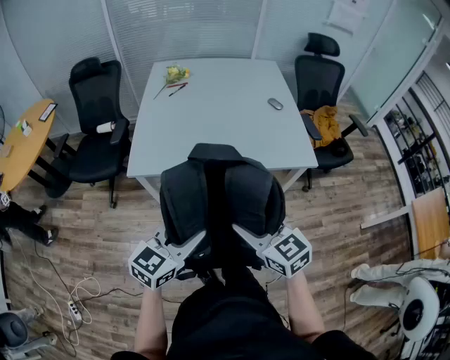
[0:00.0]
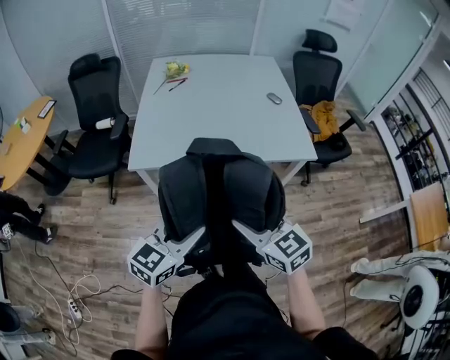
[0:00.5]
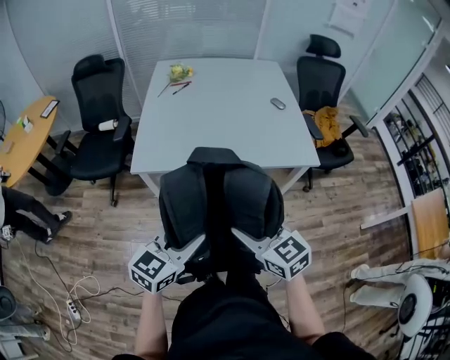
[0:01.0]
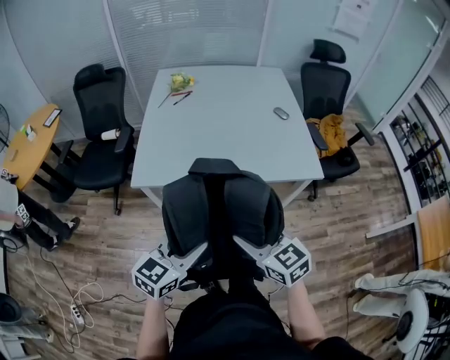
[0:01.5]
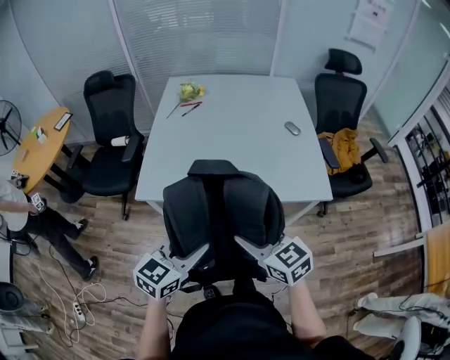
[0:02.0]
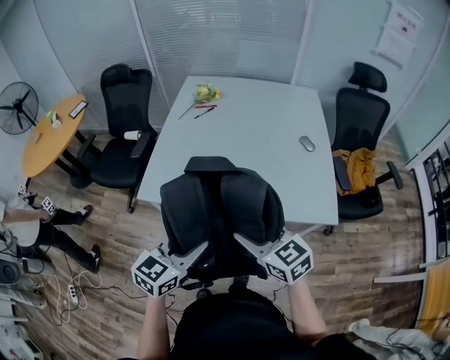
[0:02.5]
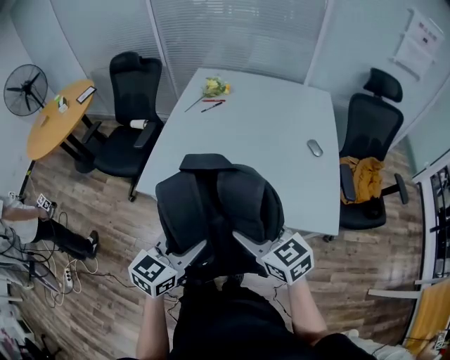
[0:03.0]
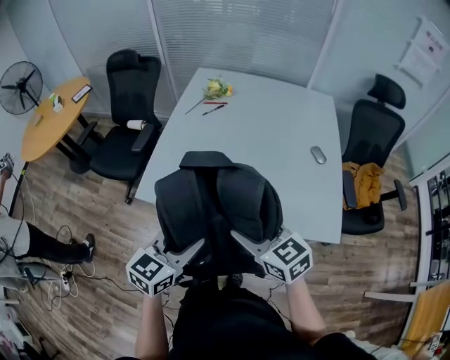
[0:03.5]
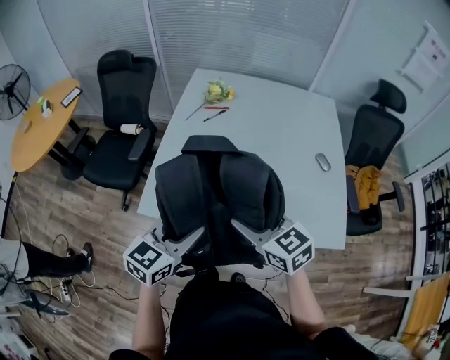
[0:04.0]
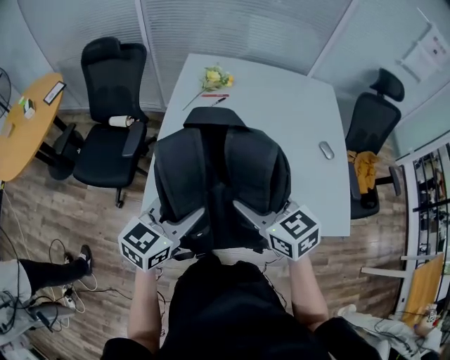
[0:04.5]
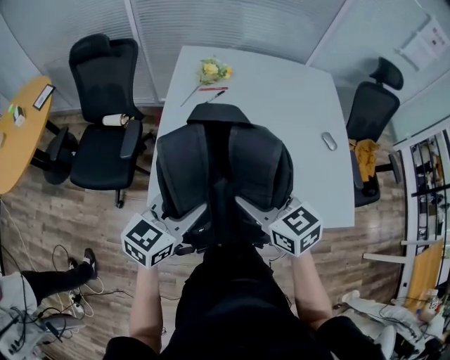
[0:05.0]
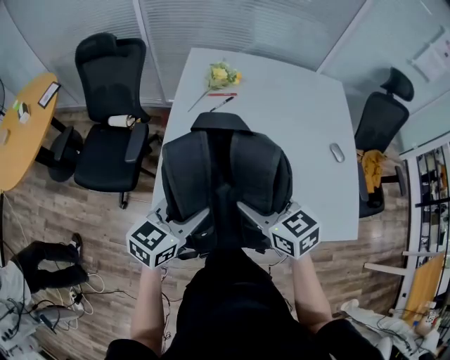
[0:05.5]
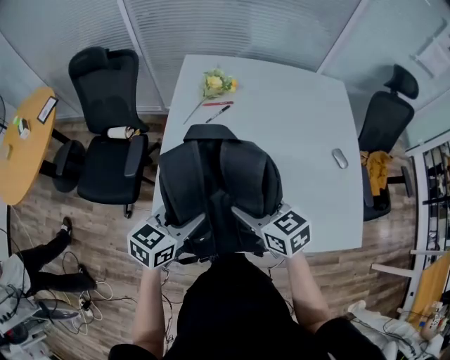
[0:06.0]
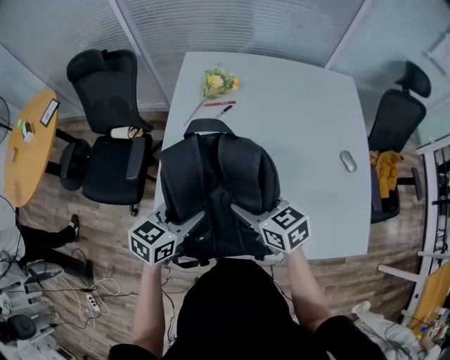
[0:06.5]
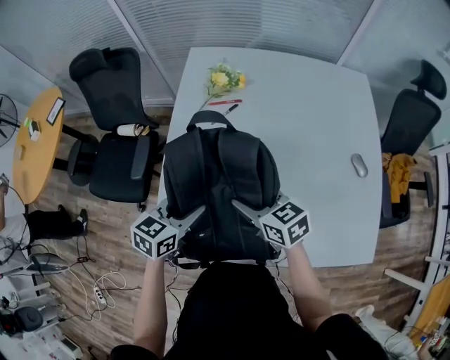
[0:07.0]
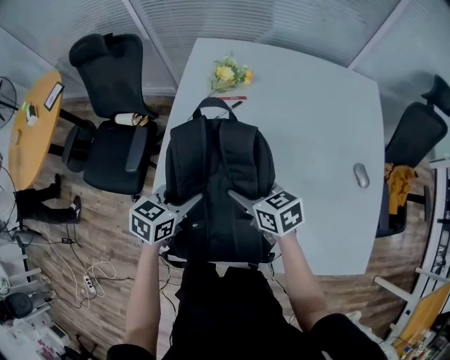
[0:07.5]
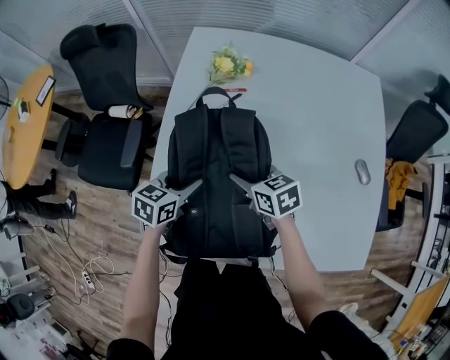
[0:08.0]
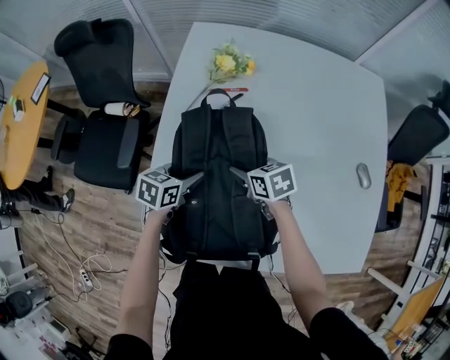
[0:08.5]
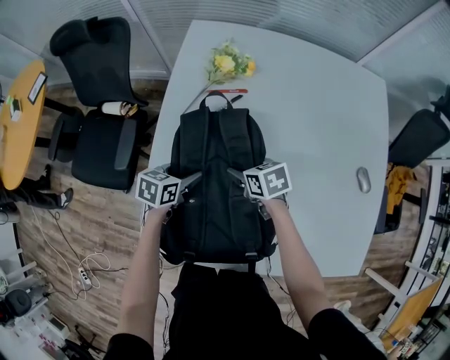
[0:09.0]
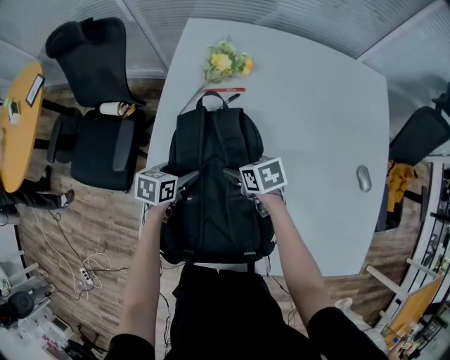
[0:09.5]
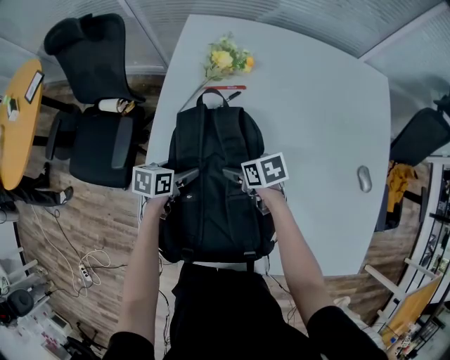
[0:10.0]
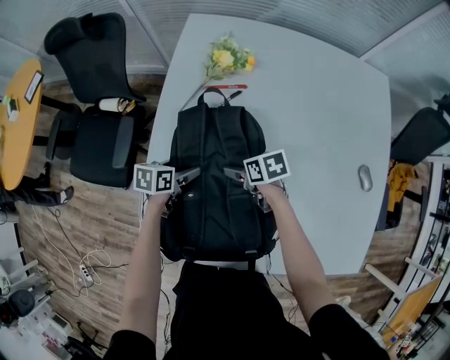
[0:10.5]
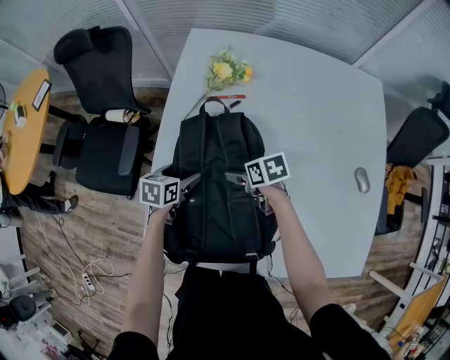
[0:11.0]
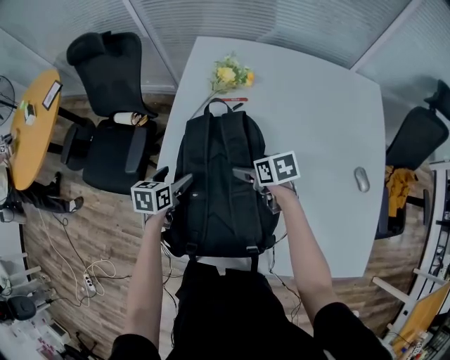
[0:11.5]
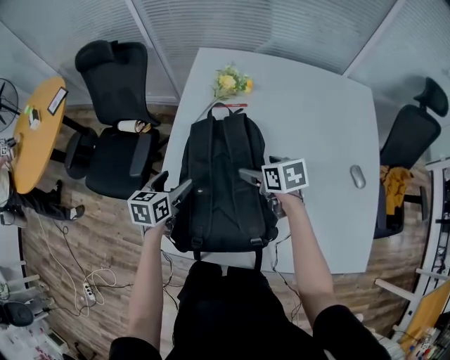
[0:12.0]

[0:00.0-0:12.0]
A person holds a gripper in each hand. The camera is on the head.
0:00.0 to 0:02.0: The two grippers go some 10 cm forward.
0:02.0 to 0:04.0: The grippers both shift forward by roughly 25 cm.
0:04.0 to 0:06.0: The left gripper heads forward and to the left, covering about 20 cm; the right gripper heads forward, to the left and downward, covering about 20 cm.
0:06.0 to 0:08.0: Both grippers travel together forward and downward, some 20 cm.
0:08.0 to 0:10.0: The grippers both shift downward and forward by some 10 cm. The right gripper changes its angle by roughly 20 degrees, and opens. The left gripper turns by some 20 degrees, and opens up.
0:10.0 to 0:12.0: Both grippers move upward, some 15 cm. The left gripper changes its angle by roughly 20 degrees.

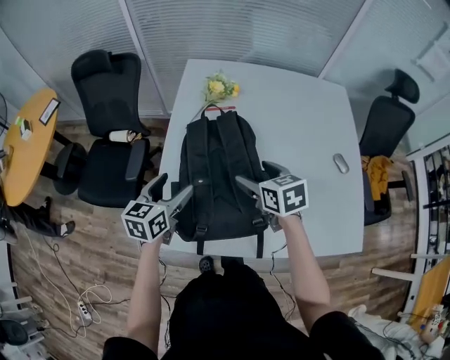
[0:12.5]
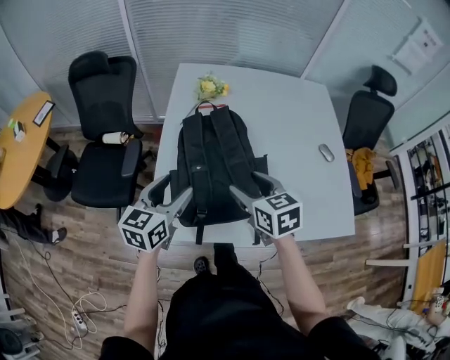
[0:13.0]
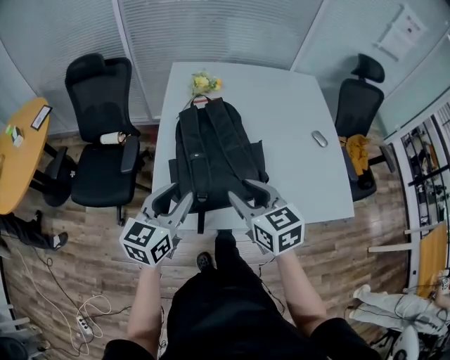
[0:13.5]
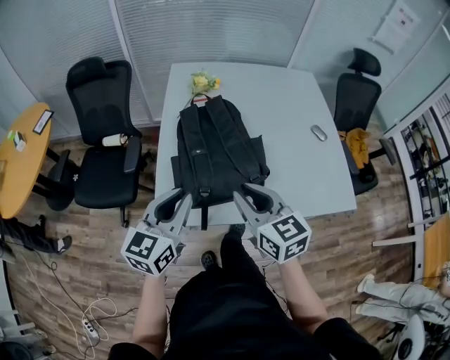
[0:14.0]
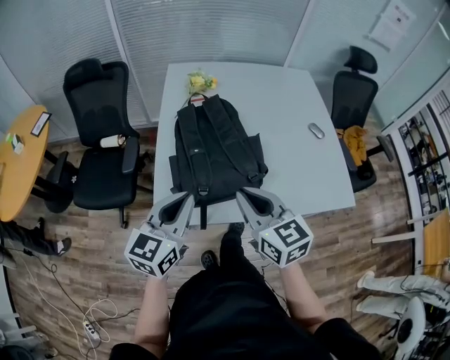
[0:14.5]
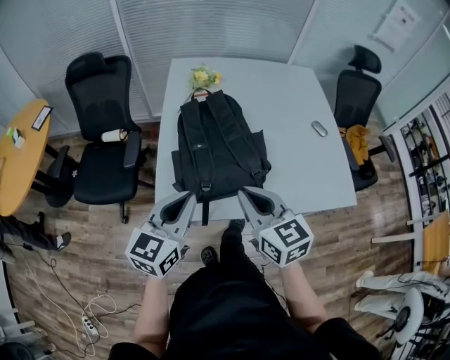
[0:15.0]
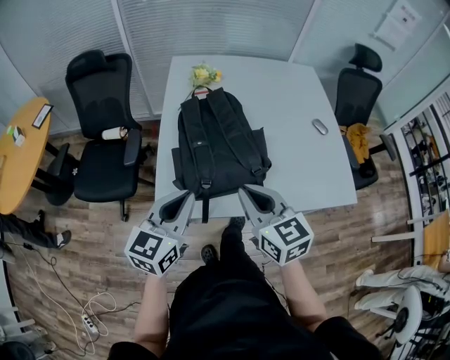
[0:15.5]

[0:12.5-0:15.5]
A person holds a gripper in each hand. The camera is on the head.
0:12.5 to 0:14.0: Both grippers move backward and upward, about 25 cm. The left gripper closes its fingers, while the right gripper rotates some 20 degrees, and closes its fingers.
0:14.0 to 0:15.5: There are only small adjustments of the grippers.

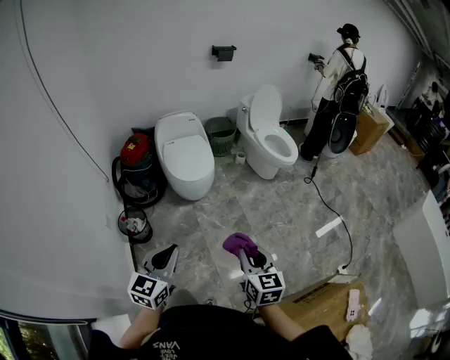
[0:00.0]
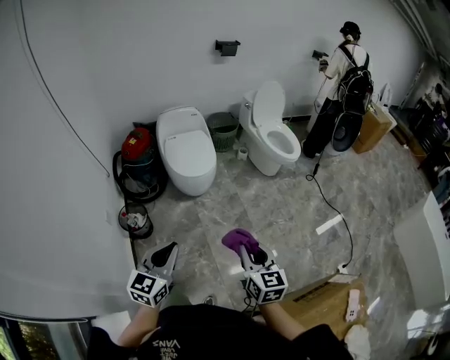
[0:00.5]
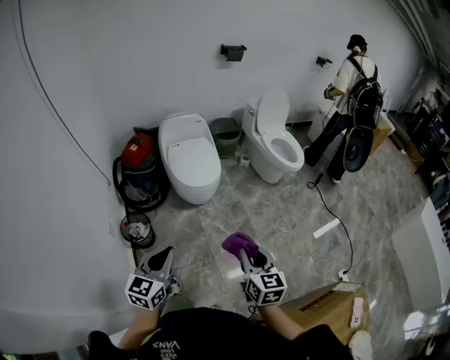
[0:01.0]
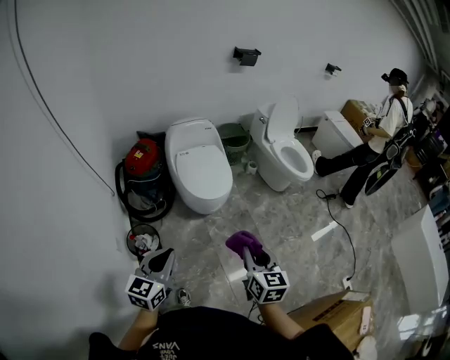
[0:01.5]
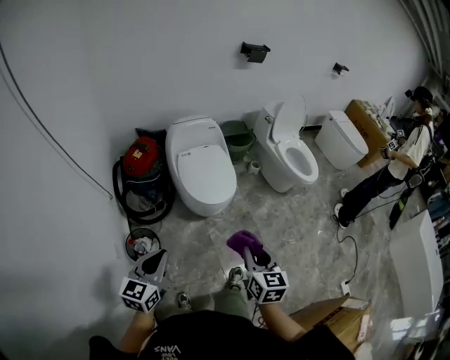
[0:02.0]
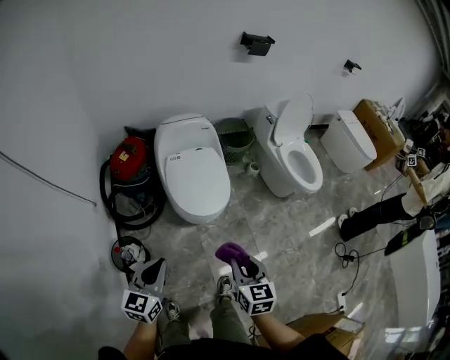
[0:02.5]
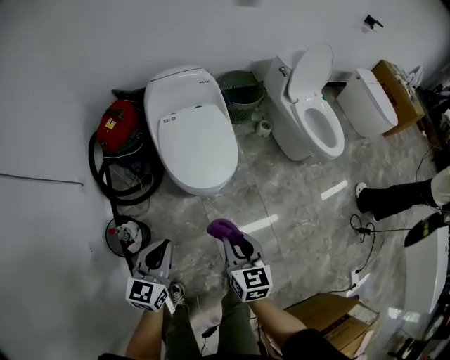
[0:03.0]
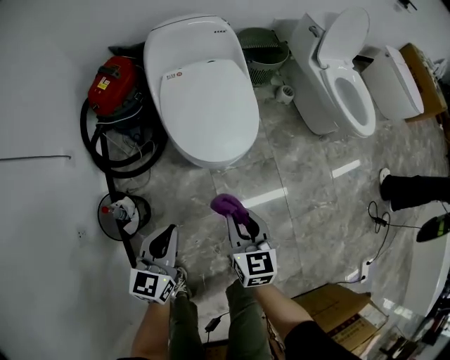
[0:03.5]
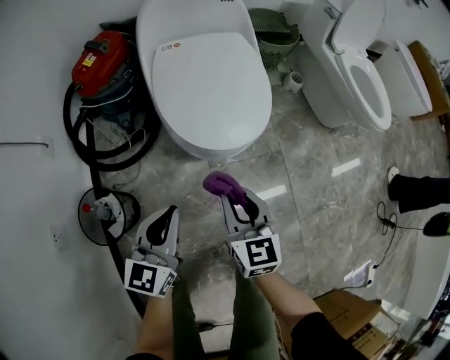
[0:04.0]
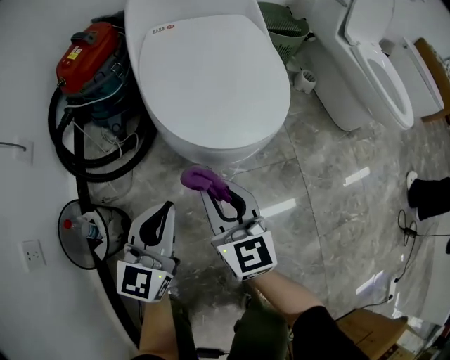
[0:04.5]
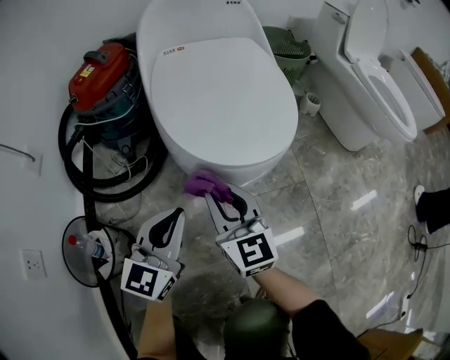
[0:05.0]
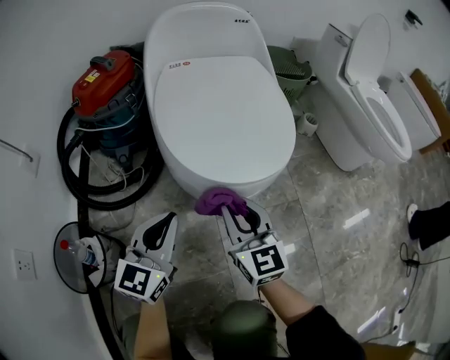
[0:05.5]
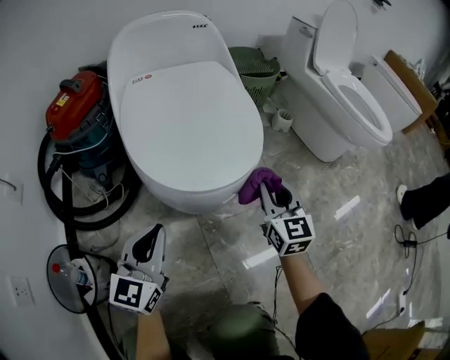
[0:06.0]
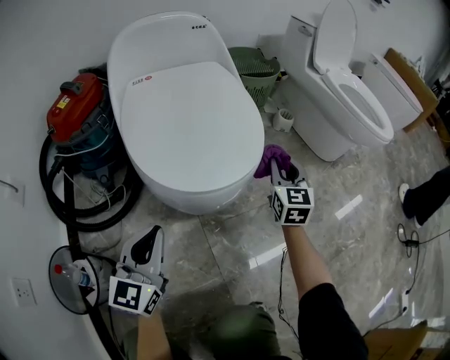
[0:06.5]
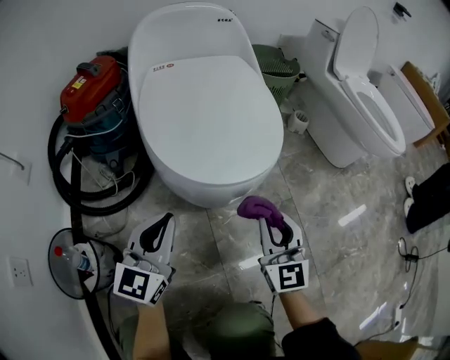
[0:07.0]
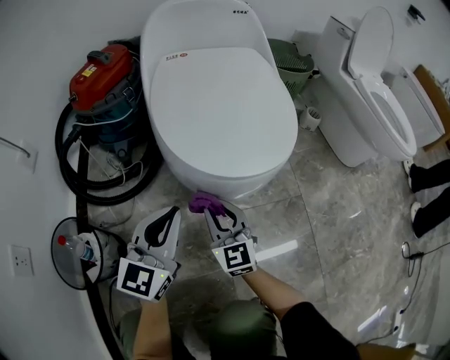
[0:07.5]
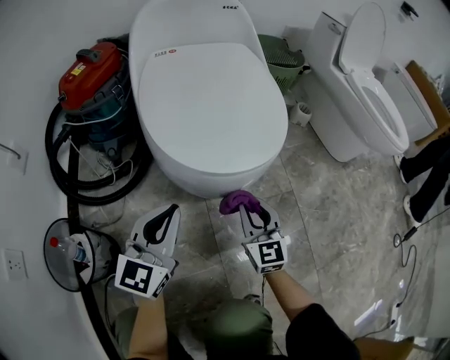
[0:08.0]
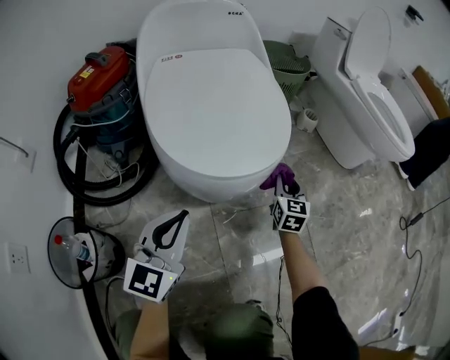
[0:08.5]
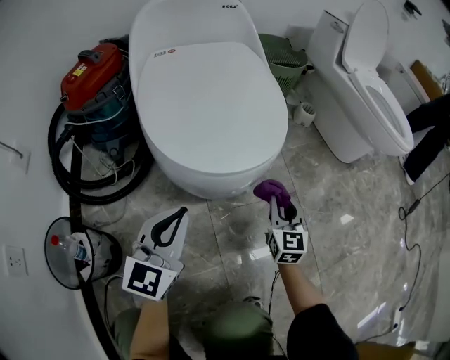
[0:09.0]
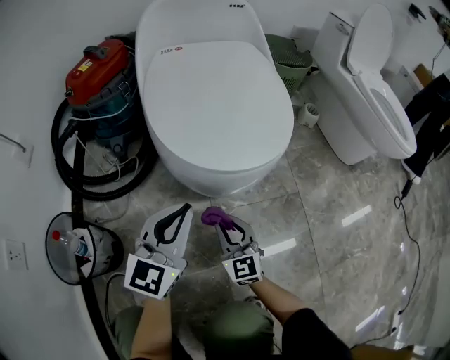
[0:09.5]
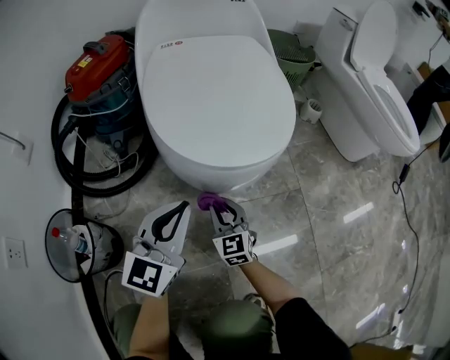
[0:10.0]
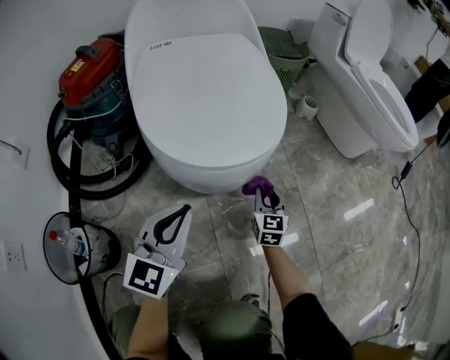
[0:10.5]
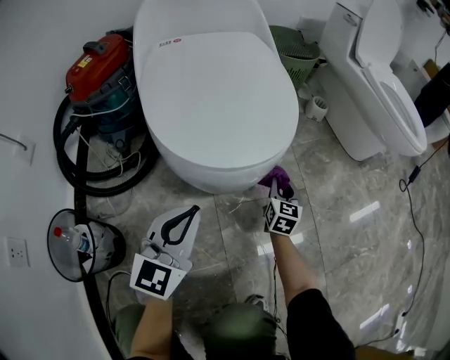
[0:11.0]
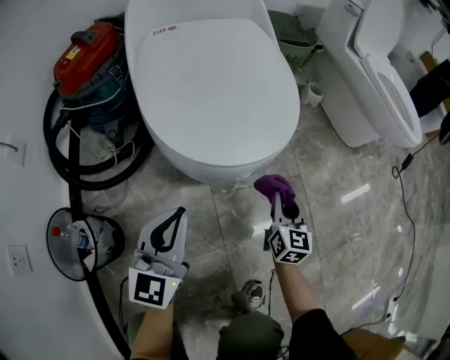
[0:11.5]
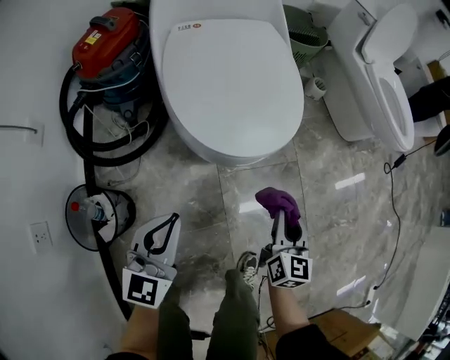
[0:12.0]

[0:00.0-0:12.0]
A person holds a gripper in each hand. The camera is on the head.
0:00.0 to 0:02.0: The right gripper travels forward and to the left by about 30 cm. The left gripper goes approximately 35 cm to the left and forward.
0:02.0 to 0:04.0: Both grippers move downward and forward, about 50 cm.
0:04.0 to 0:06.0: The right gripper goes roughly 25 cm to the right, forward and downward; the left gripper goes approximately 20 cm downward and forward.
0:06.0 to 0:08.0: The right gripper goes left and right, some 25 cm each way, reversing 2 times.
0:08.0 to 0:10.0: The right gripper is displaced downward and to the left by about 15 cm.
0:10.0 to 0:12.0: The left gripper is displaced backward and upward by roughly 10 cm, while the right gripper heads upward and to the right, covering about 25 cm, and rotates roughly 40 degrees.
